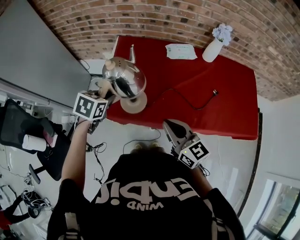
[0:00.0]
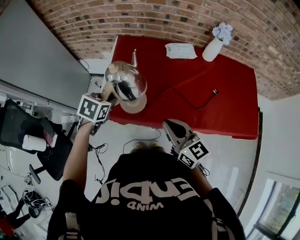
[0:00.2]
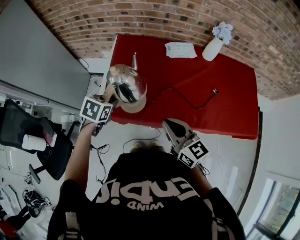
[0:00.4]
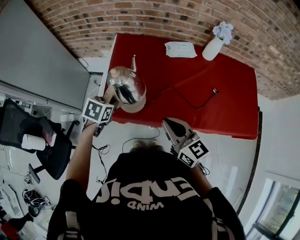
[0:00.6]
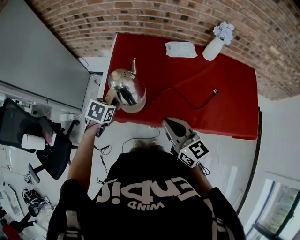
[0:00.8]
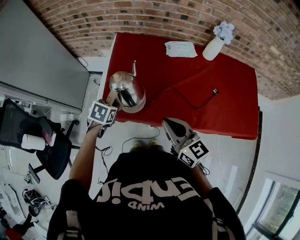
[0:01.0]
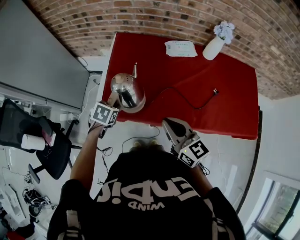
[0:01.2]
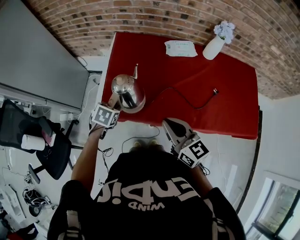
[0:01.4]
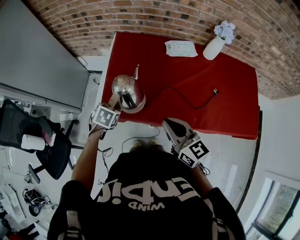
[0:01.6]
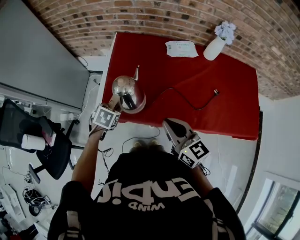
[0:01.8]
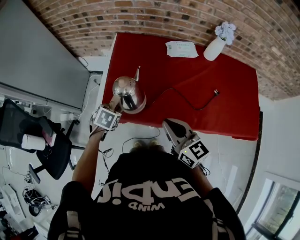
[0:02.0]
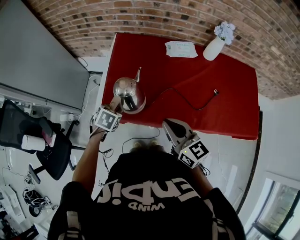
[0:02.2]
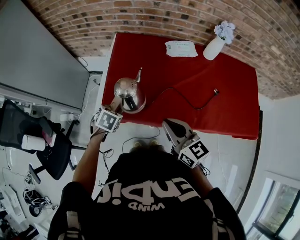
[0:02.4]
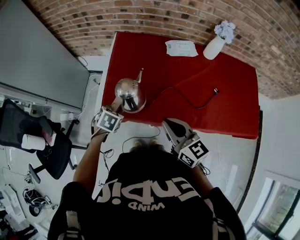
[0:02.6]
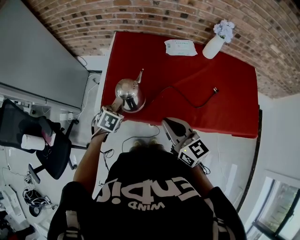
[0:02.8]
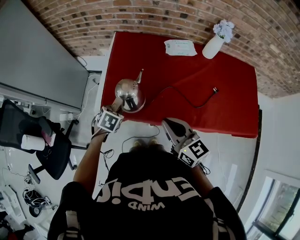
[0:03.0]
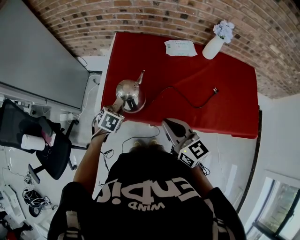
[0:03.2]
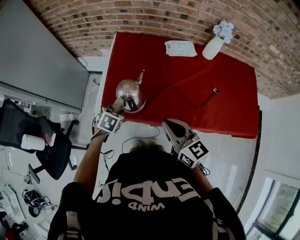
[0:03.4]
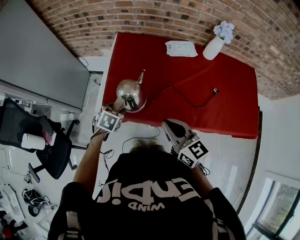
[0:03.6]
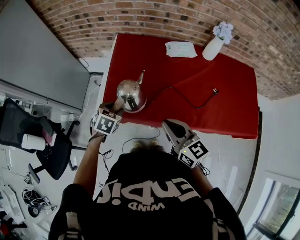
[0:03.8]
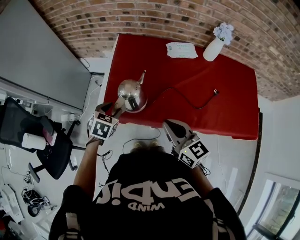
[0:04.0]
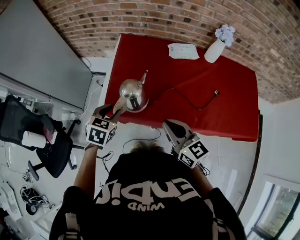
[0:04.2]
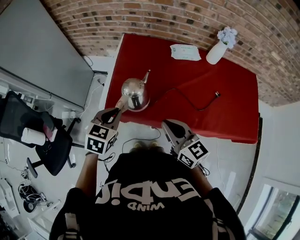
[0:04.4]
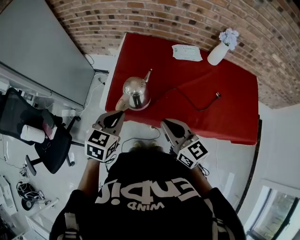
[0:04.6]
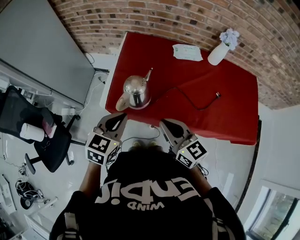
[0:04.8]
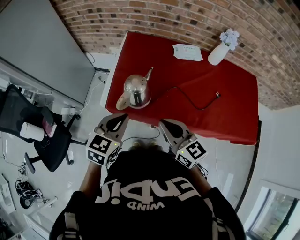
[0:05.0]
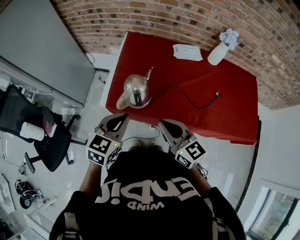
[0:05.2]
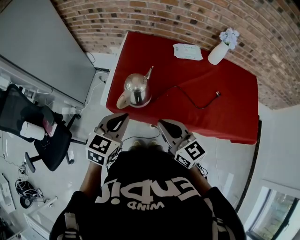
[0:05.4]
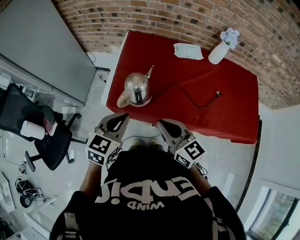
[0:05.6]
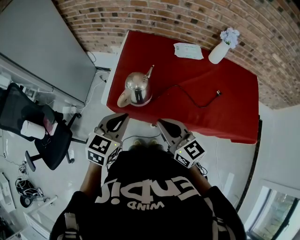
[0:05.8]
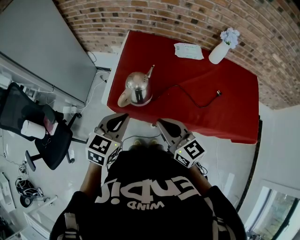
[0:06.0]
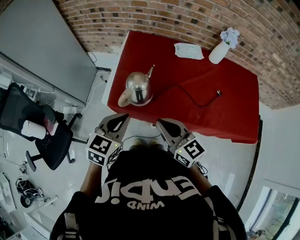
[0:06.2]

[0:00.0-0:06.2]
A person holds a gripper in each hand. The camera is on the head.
0:00.0 to 0:01.6: The left gripper is displaced downward by approximately 10 cm.
0:01.6 to 0:03.2: The grippers make only small movements.
0:03.2 to 0:04.6: The left gripper shifts roughly 20 cm upward and backward, turns by roughly 30 degrees, and opens and closes again.
0:04.6 to 0:06.2: The grippers move only a little.

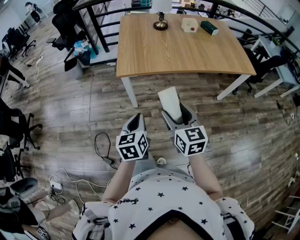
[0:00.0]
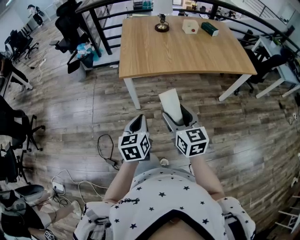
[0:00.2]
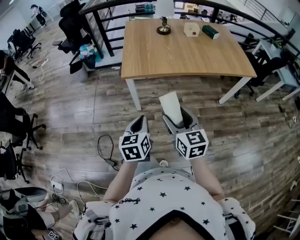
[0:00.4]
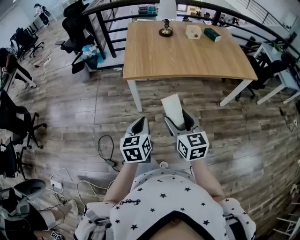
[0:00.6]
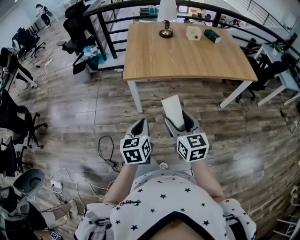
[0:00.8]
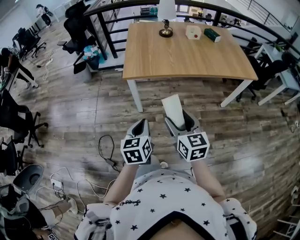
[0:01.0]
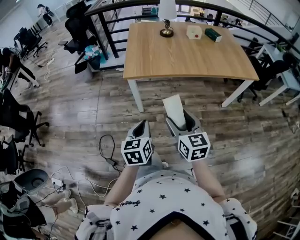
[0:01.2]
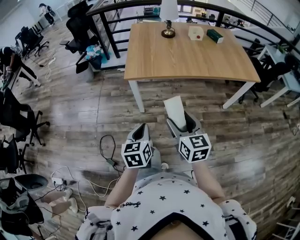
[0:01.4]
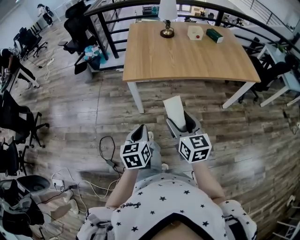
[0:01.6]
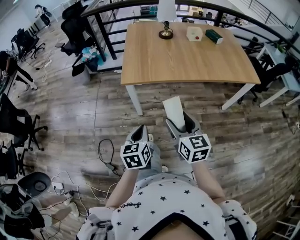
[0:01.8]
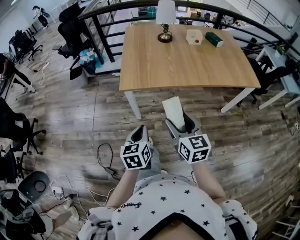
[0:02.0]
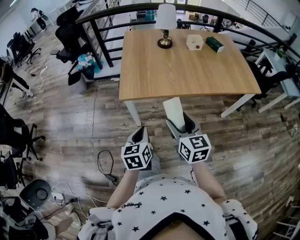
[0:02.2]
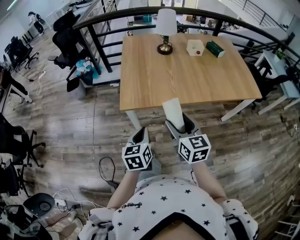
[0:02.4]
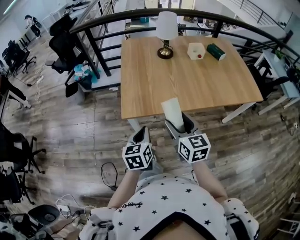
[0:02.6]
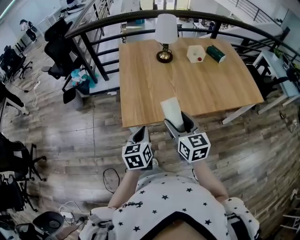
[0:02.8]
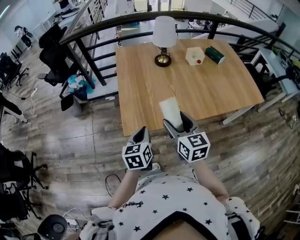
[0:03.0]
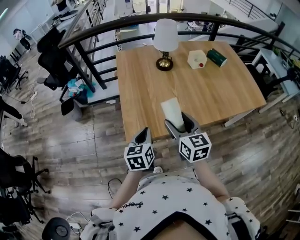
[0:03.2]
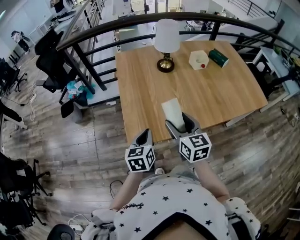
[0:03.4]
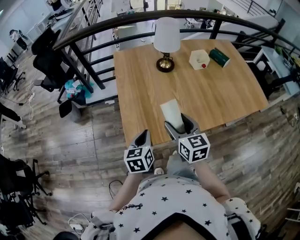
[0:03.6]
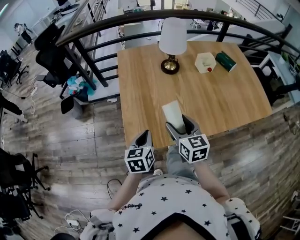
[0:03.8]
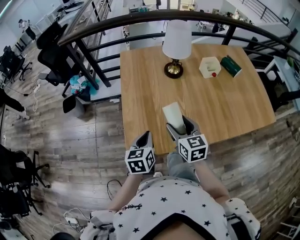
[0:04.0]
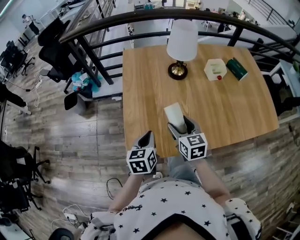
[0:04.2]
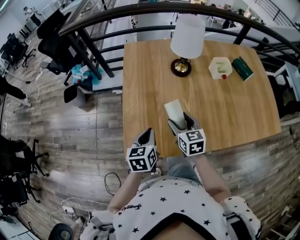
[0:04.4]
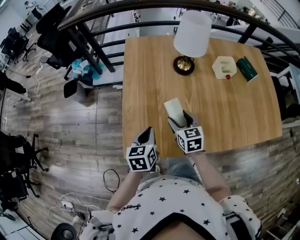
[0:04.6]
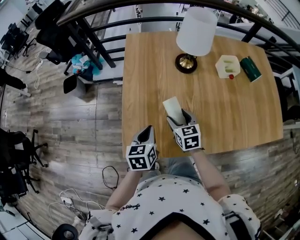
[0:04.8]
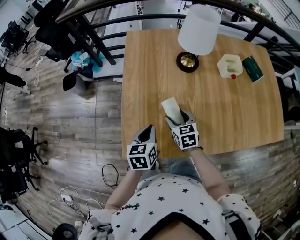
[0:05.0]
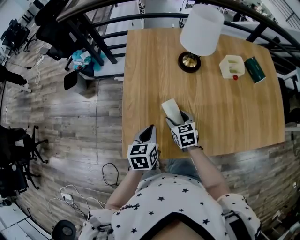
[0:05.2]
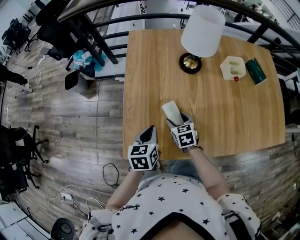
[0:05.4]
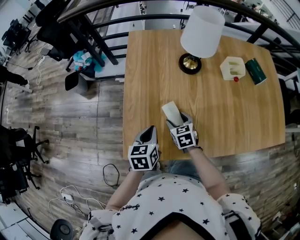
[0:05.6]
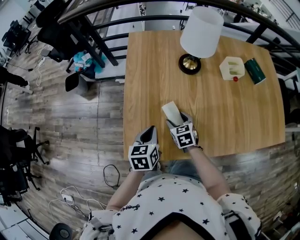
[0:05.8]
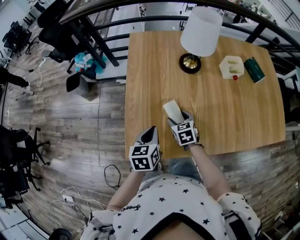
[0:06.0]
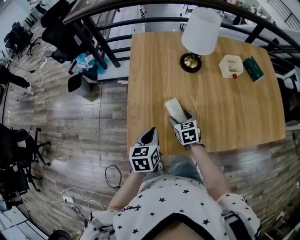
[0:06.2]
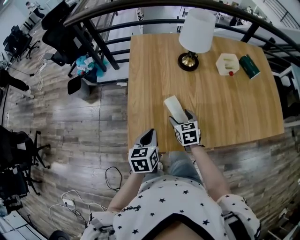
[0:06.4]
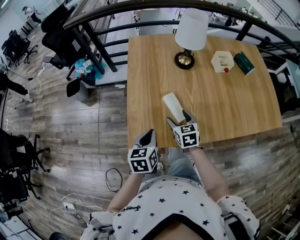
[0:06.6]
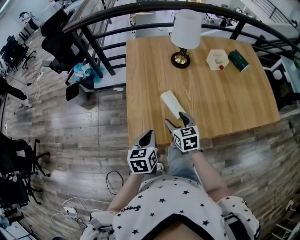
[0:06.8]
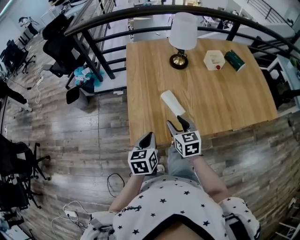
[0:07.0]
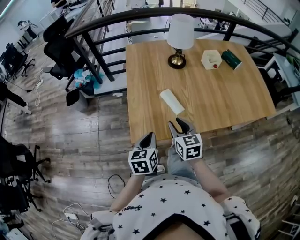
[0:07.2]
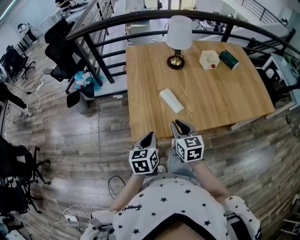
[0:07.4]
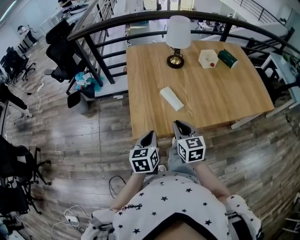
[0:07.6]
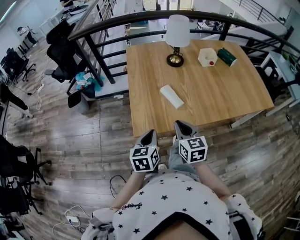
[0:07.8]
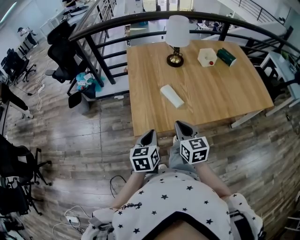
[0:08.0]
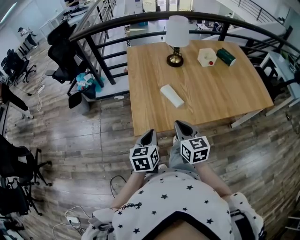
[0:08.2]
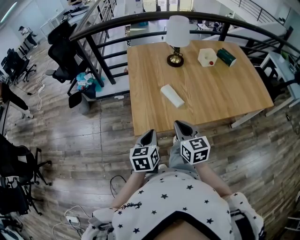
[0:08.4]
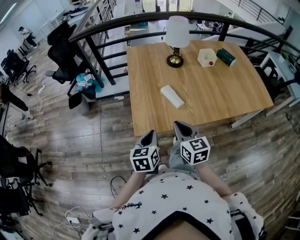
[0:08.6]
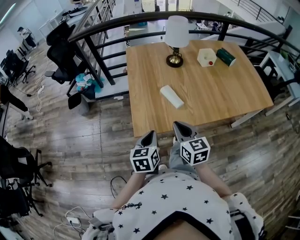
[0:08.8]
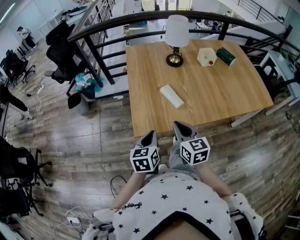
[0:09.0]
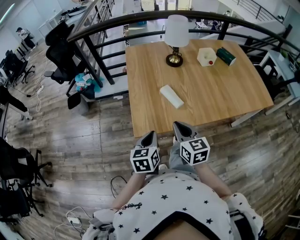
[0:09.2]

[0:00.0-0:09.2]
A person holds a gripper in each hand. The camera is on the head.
0:00.0 to 0:01.6: The left gripper moves backward, approximately 5 cm.
0:01.6 to 0:03.0: Both grippers travel together forward, roughly 35 cm.
0:03.0 to 0:04.6: The left gripper shifts some 20 cm forward. Meanwhile the right gripper goes about 30 cm forward and downward.
0:04.6 to 0:06.2: The right gripper goes about 10 cm downward.
0:06.2 to 0:07.6: The left gripper travels backward by about 15 cm, while the right gripper is displaced backward and upward by some 25 cm, swivels about 20 degrees, and closes its fingers.
0:07.6 to 0:09.2: There are only small adjustments of the grippers.

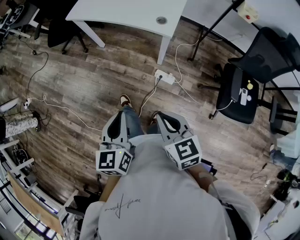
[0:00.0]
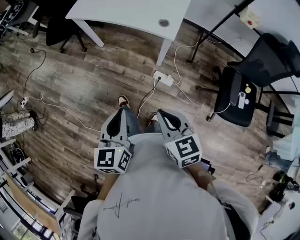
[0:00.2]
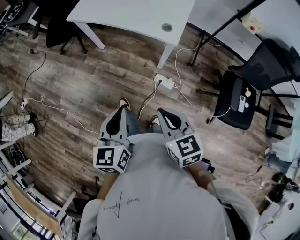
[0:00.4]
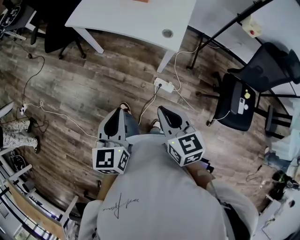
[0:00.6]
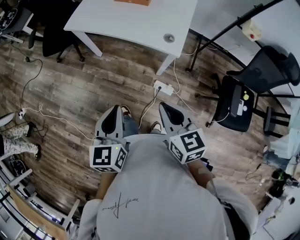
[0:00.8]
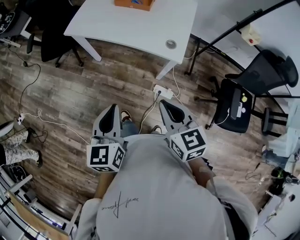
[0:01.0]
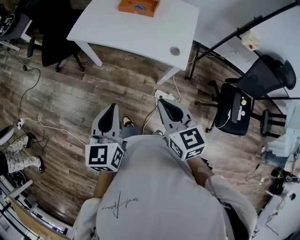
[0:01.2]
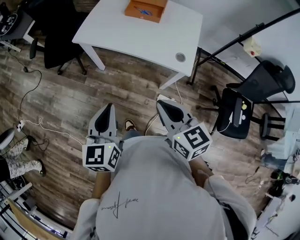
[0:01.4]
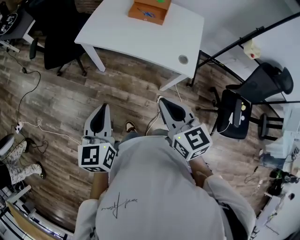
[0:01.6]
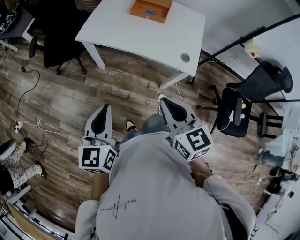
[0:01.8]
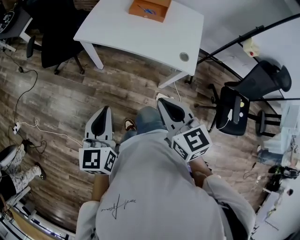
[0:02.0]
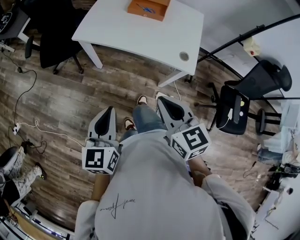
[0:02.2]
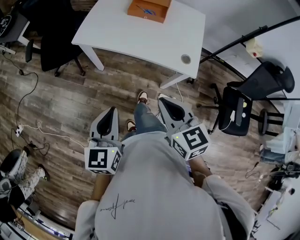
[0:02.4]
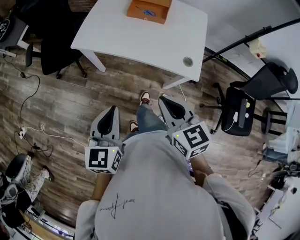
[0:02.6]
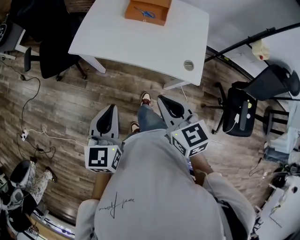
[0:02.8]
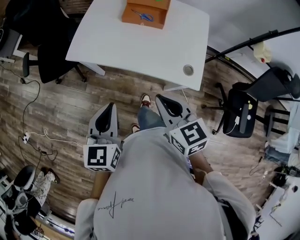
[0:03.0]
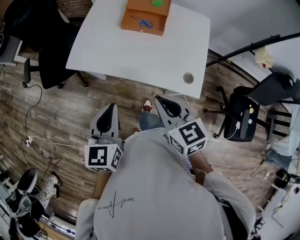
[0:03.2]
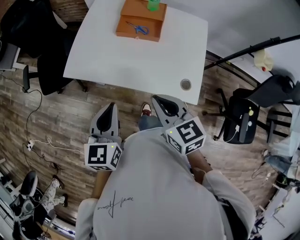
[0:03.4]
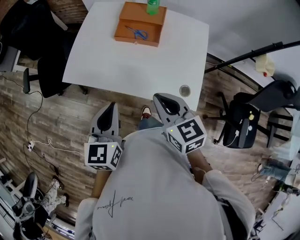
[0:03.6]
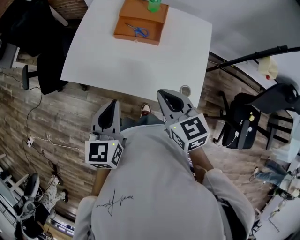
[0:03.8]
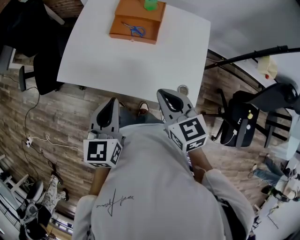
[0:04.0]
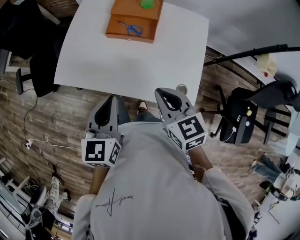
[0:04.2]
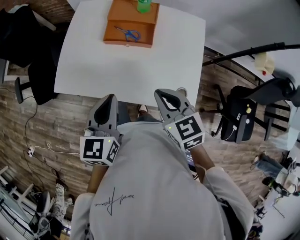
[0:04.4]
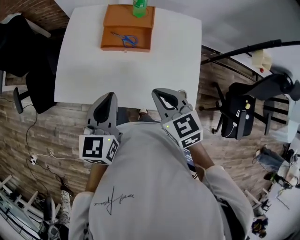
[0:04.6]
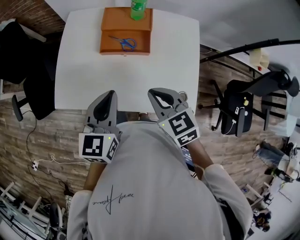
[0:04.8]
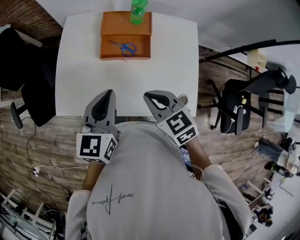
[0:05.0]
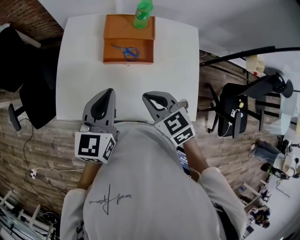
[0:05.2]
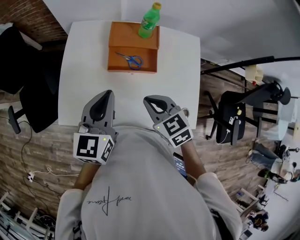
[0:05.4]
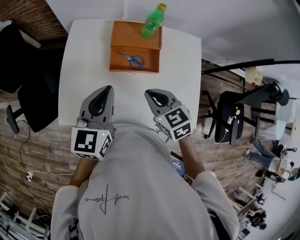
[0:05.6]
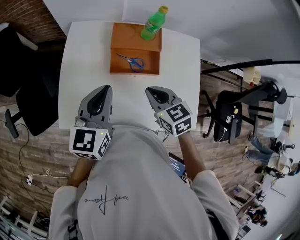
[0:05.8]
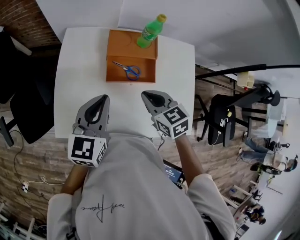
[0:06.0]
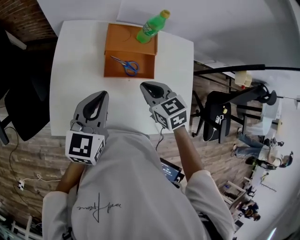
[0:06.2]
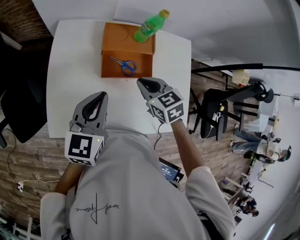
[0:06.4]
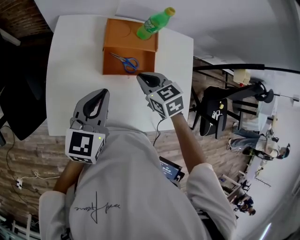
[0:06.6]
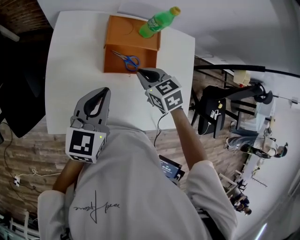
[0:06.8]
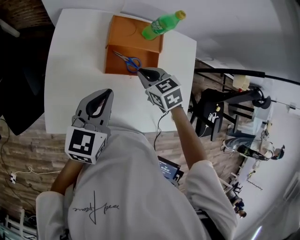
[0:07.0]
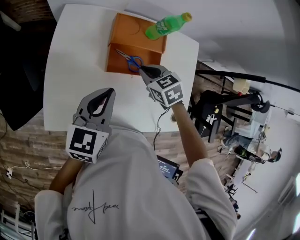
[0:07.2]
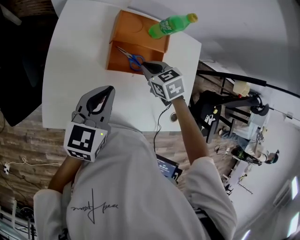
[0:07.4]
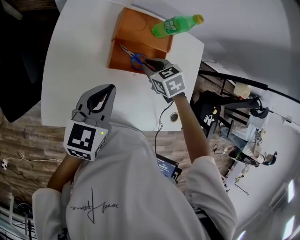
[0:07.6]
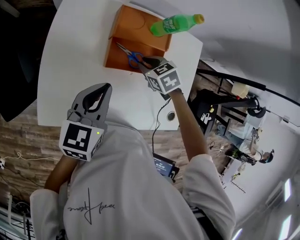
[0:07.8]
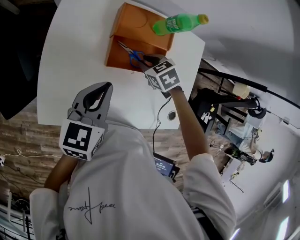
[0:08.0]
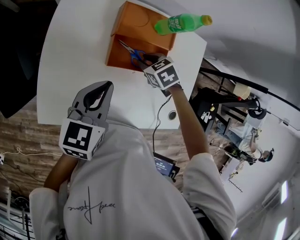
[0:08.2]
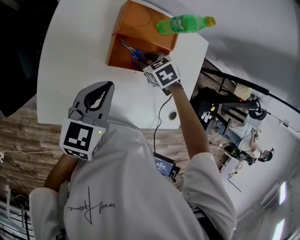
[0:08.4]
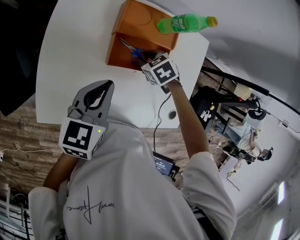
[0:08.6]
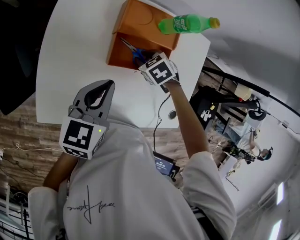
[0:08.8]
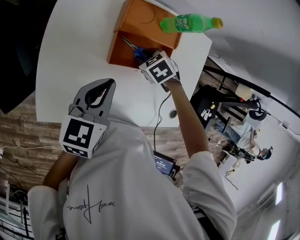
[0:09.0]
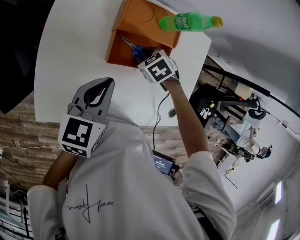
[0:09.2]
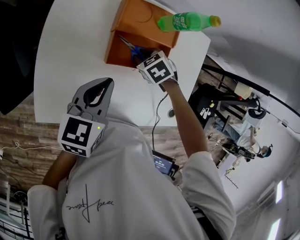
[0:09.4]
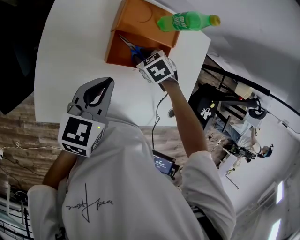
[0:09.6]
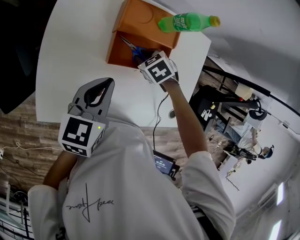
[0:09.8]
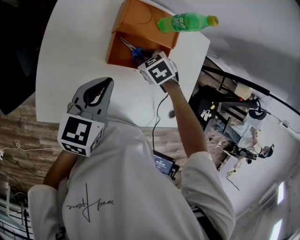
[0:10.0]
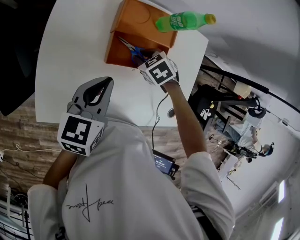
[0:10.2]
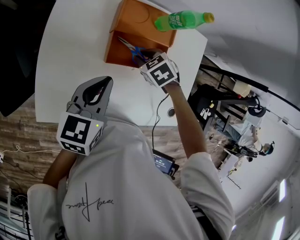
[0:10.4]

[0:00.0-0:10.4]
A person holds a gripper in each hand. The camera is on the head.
0:00.0 to 0:01.4: Both grippers move forward and to the left, roughly 30 cm.
0:01.4 to 0:03.0: The two grippers go roughly 15 cm forward.
0:03.0 to 0:04.4: The two grippers go some 20 cm forward and to the right.
0:04.4 to 0:06.0: The left gripper travels forward by some 20 cm, while the right gripper goes roughly 20 cm forward and to the left.
0:06.0 to 0:07.4: The left gripper ends up roughly 5 cm from where it was; the right gripper is displaced forward and downward by roughly 15 cm, and rotates some 20 degrees.
0:07.4 to 0:09.0: The right gripper moves downward, some 10 cm, rotates approximately 20 degrees, and opens its fingers.
0:09.0 to 0:10.4: The grippers stay close to where they were, moving slightly.
